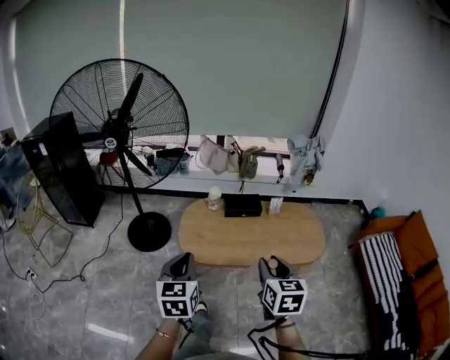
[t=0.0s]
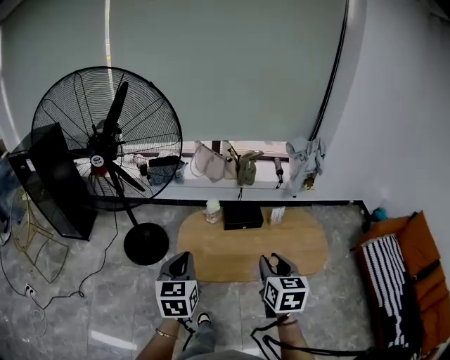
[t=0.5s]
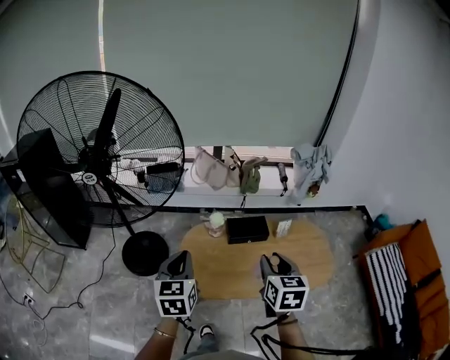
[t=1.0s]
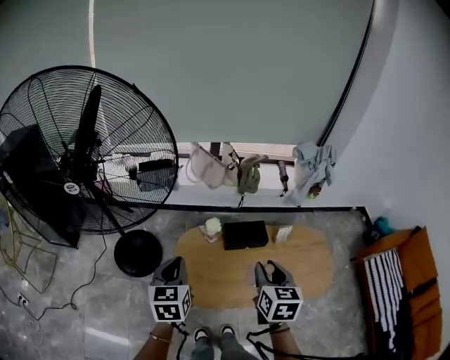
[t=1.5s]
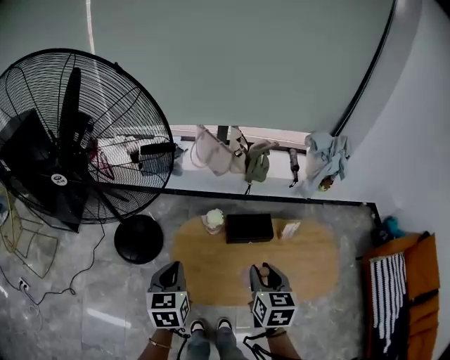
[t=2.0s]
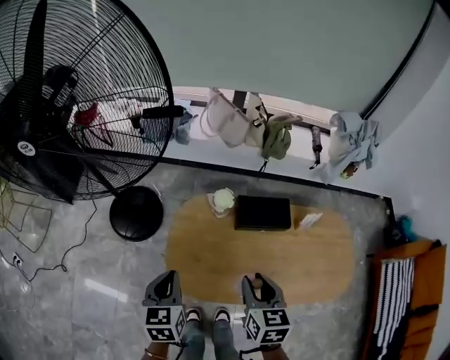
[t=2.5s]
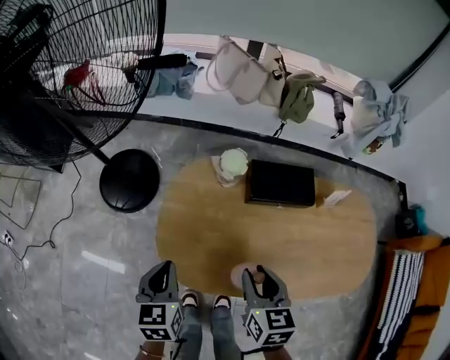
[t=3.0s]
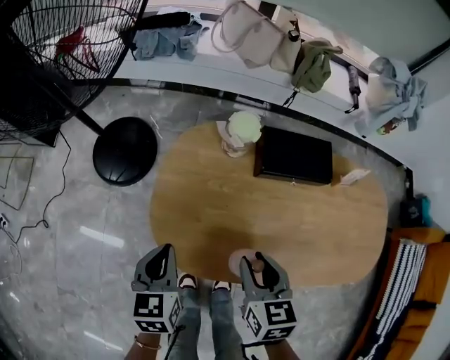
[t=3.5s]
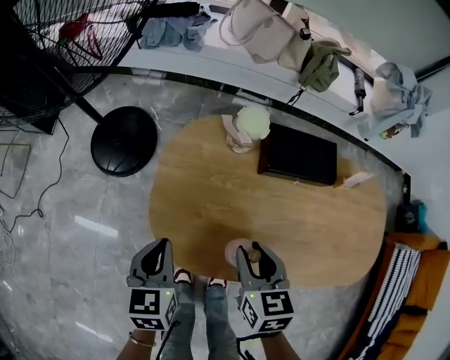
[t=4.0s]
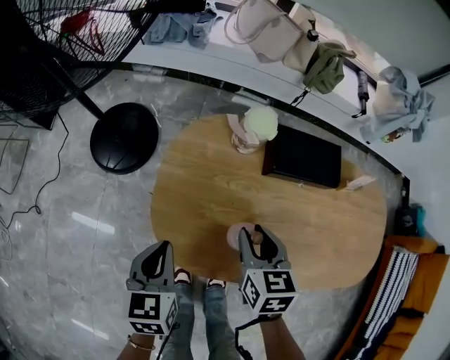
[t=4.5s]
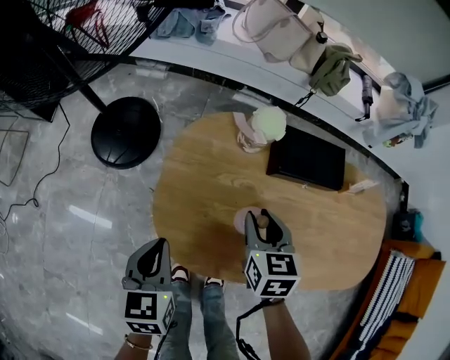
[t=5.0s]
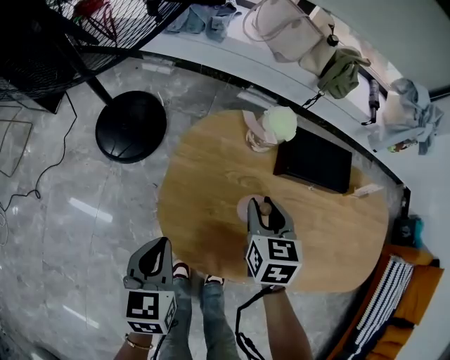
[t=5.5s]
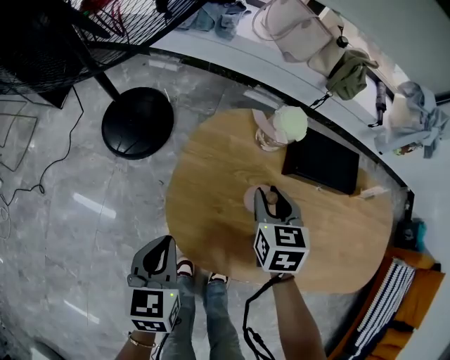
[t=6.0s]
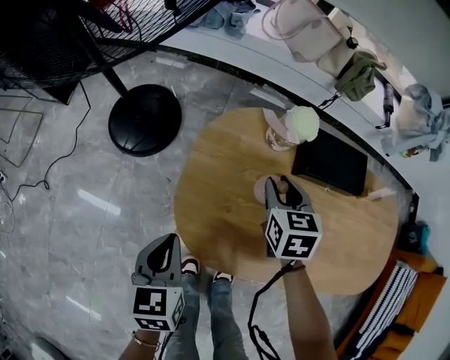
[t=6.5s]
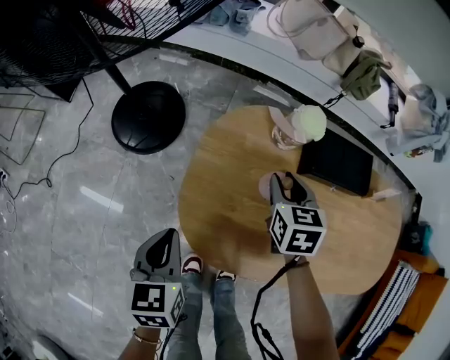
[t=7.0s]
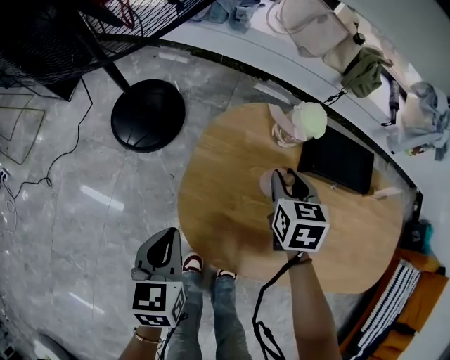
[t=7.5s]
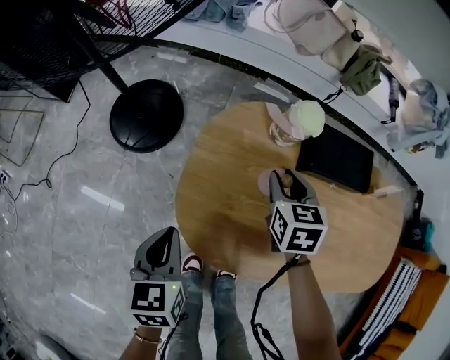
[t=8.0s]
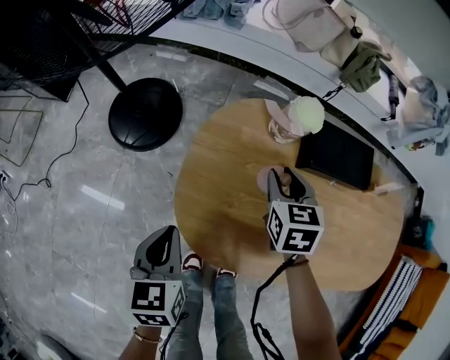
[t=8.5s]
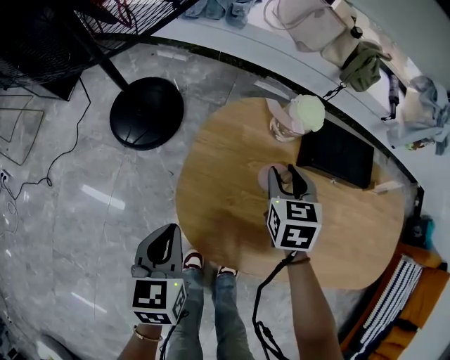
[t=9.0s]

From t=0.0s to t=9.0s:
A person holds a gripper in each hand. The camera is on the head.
From t=0.0s to t=2.0s: The two grippers go about 30 cm forward.
From t=2.0s to t=4.5s: The grippers both shift downward by about 35 cm.
From t=4.5s to t=7.0s: The right gripper travels forward by some 10 cm. The left gripper goes roughly 5 cm to the left.
From t=7.0s to t=9.0s: Neither gripper changes place.

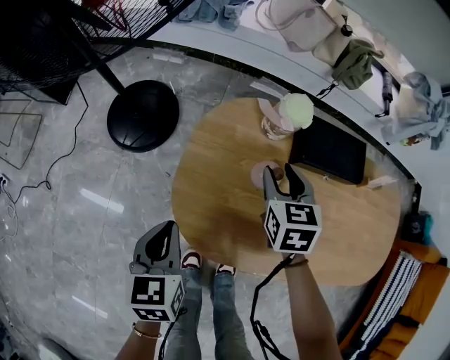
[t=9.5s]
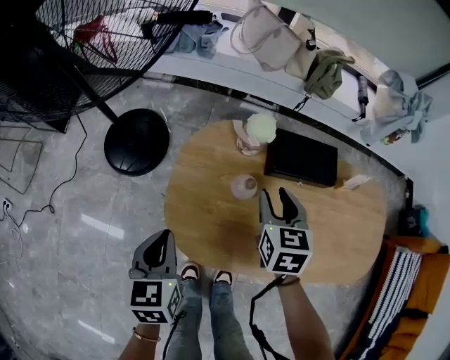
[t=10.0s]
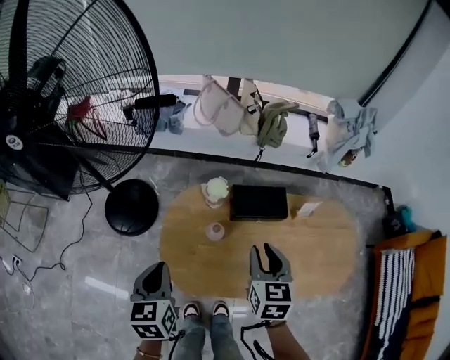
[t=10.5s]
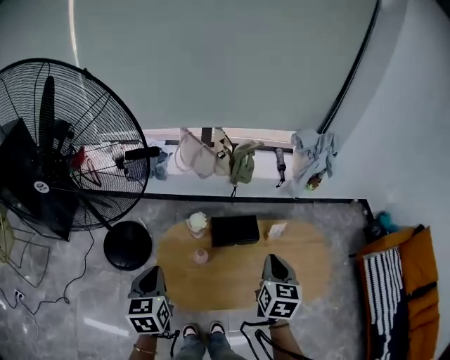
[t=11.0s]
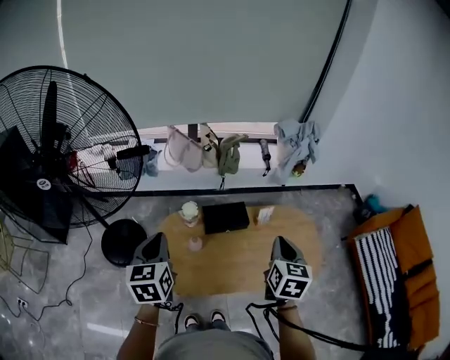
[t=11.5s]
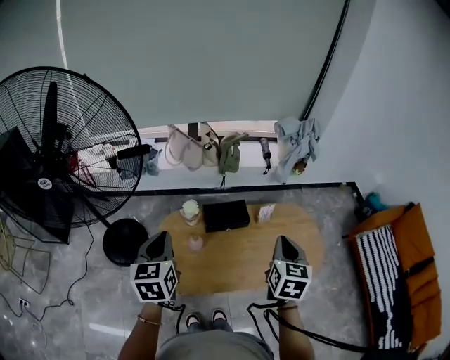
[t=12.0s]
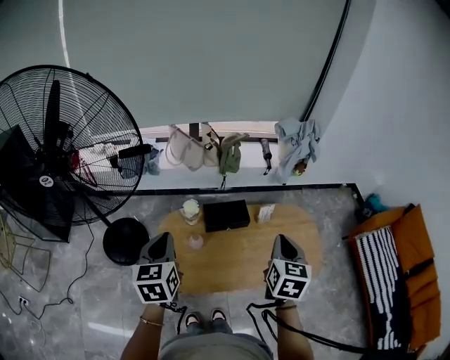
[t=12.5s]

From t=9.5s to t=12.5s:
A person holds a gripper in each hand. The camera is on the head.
From t=9.5s to t=11.0s: The left gripper goes some 30 cm upward. Meanwhile the right gripper is displaced upward, to the right and backward by some 40 cm, rotates about 30 degrees, and closes.
From t=11.0s to t=12.5s: The right gripper heads upward, to the right and backward, covering some 10 cm. Meanwhile the left gripper shifts about 10 cm upward and to the right.

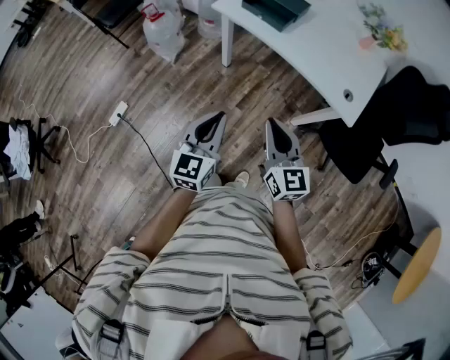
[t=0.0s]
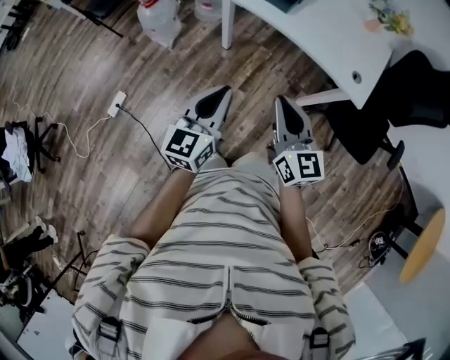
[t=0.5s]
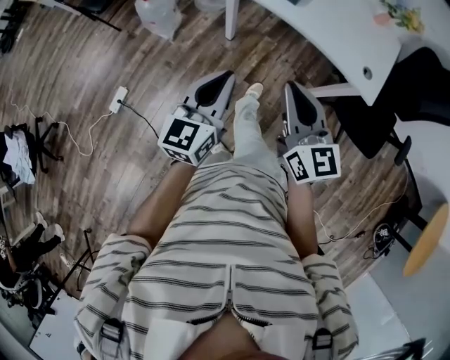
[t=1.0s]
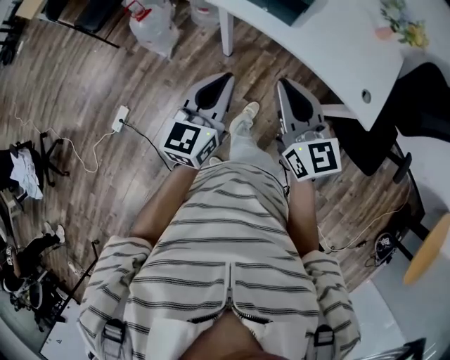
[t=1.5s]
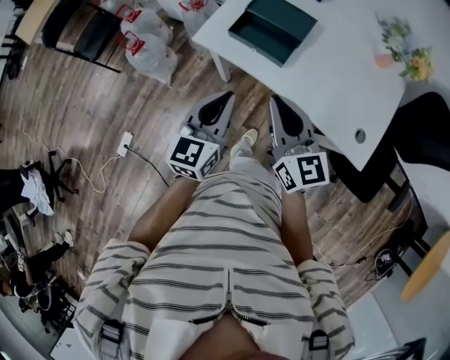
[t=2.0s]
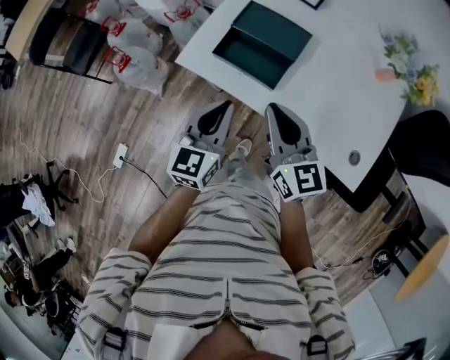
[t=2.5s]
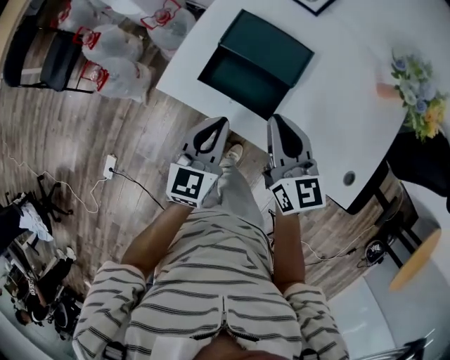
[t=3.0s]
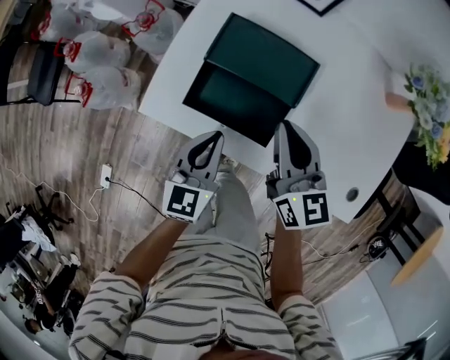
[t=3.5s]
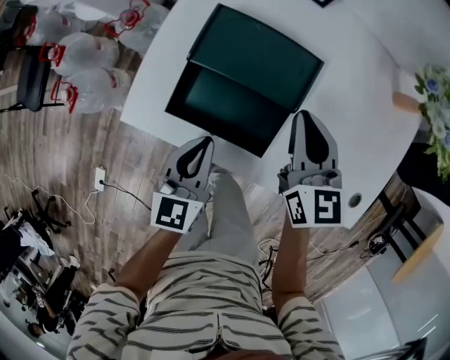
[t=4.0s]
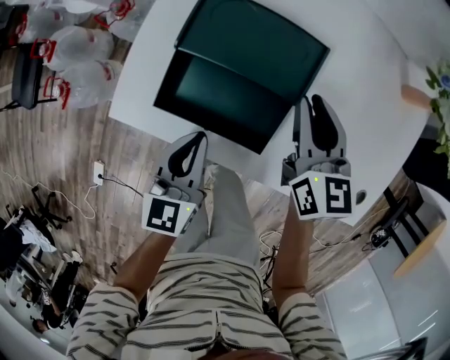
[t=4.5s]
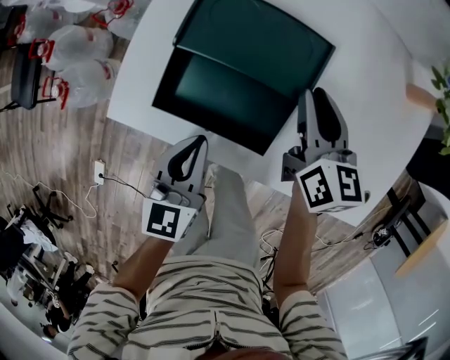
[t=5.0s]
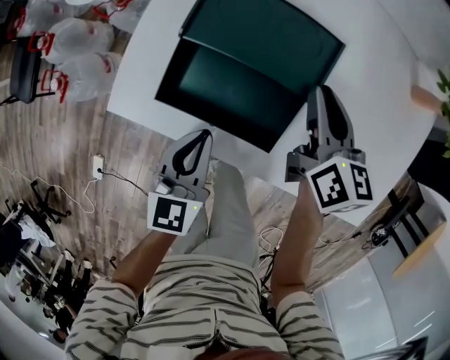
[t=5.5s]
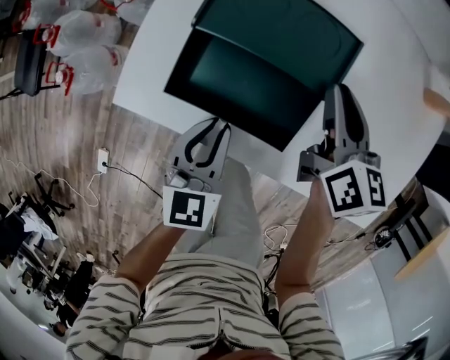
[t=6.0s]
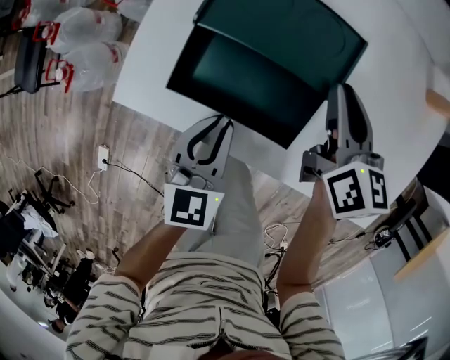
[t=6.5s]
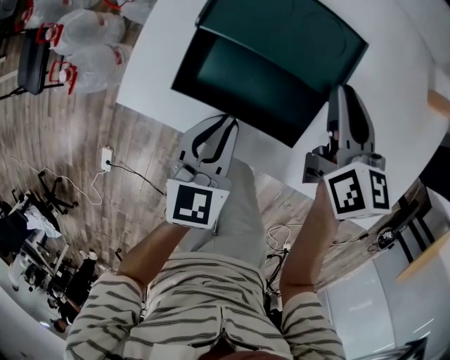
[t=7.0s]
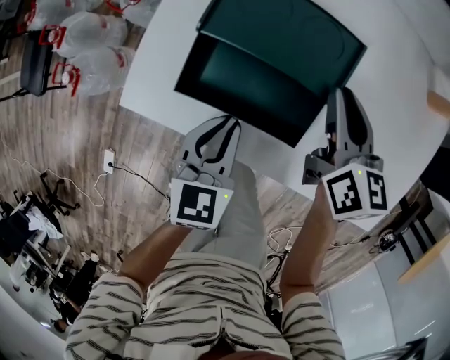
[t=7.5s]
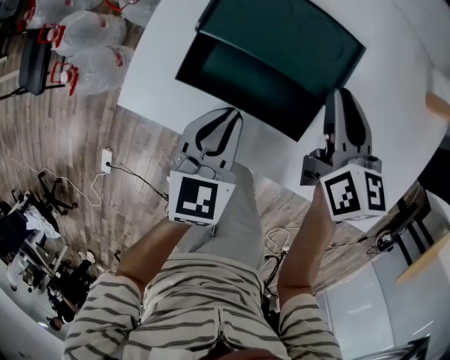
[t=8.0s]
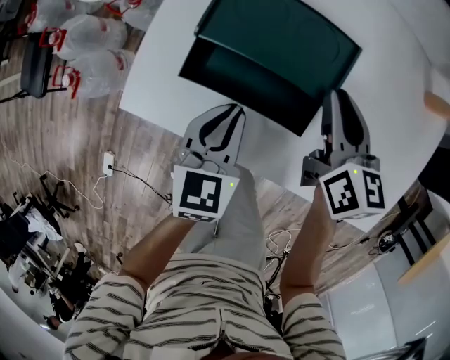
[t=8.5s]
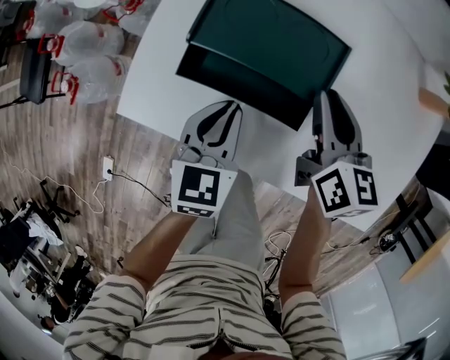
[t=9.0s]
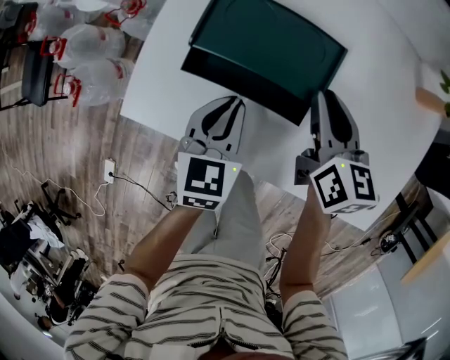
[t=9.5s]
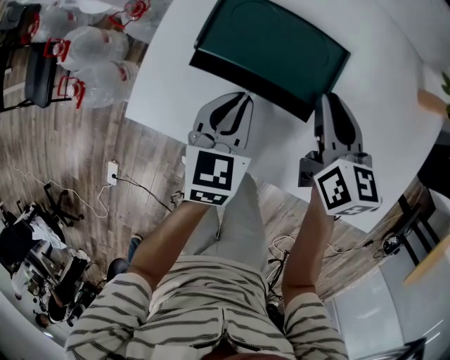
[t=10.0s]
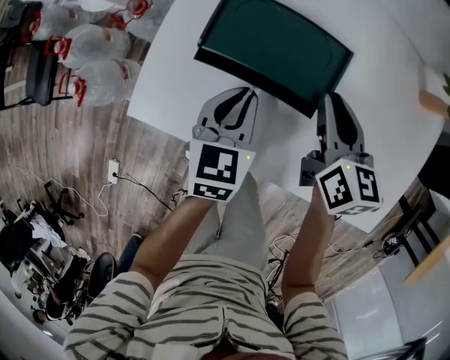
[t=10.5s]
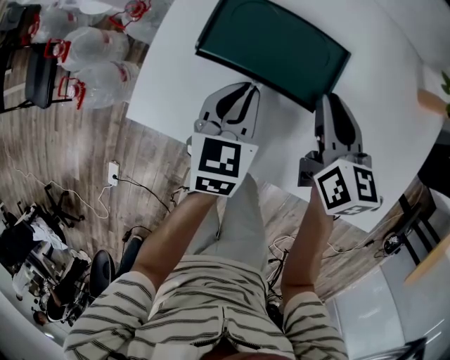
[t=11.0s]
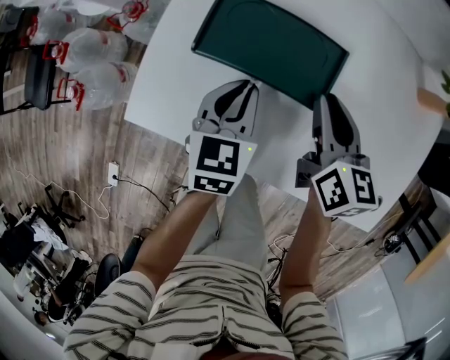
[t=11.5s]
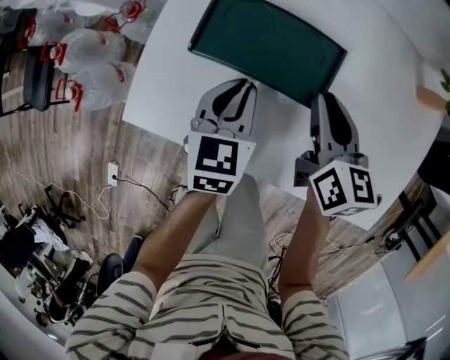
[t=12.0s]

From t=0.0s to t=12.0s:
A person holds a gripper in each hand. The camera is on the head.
From t=0.0s to t=2.0s: Both grippers move forward, roughly 35 cm.
From t=2.0s to t=4.0s: Both grippers move forward and downward, about 30 cm. The right gripper turns by some 30 degrees.
From t=4.0s to t=6.0s: The right gripper travels downward by roughly 5 cm.
From t=6.0s to t=8.0s: There are only small adjustments of the grippers.
From t=8.0s to t=10.0s: The left gripper heads forward, covering roughly 5 cm.
From t=10.0s to t=12.0s: The grippers move only a little.

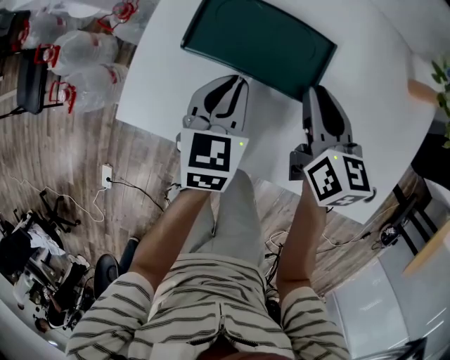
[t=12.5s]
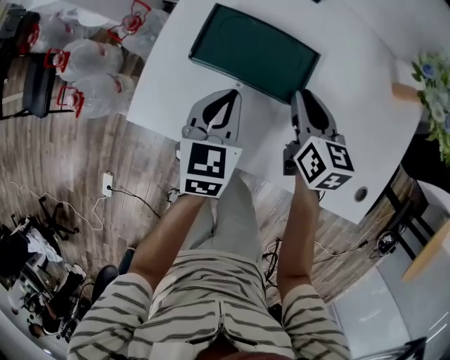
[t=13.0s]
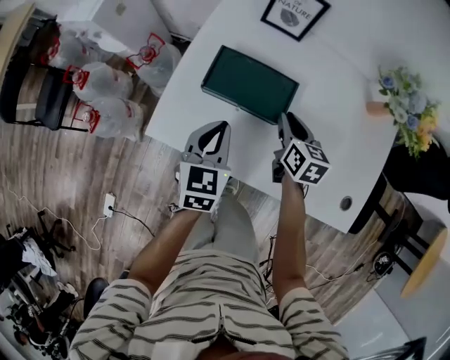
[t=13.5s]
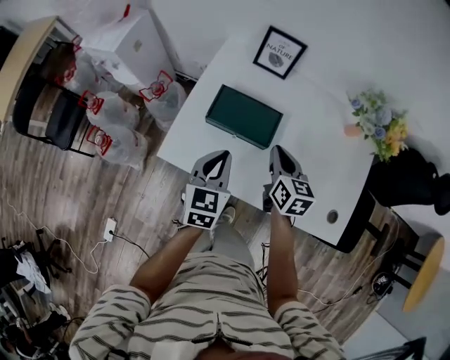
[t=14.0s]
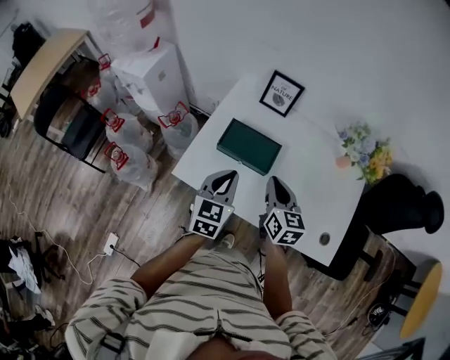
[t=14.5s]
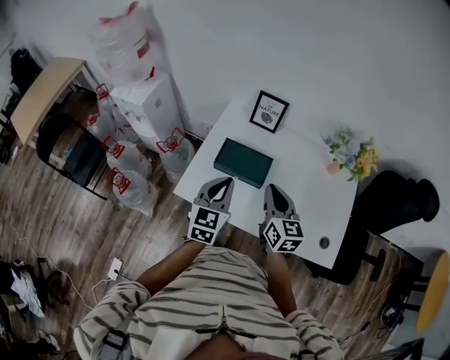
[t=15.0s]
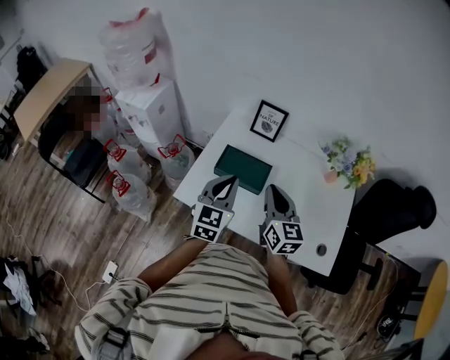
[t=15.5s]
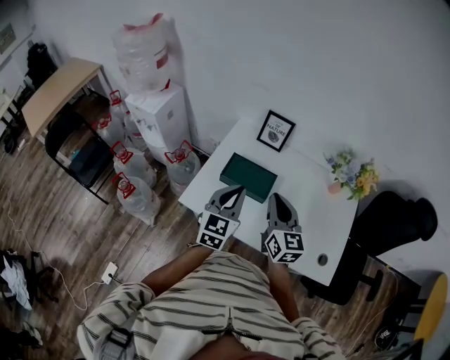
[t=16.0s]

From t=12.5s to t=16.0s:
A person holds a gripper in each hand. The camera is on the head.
From t=12.5s to t=14.5s: Both grippers travel together upward and backward, approximately 25 cm.
From t=14.5s to t=16.0s: Both grippers travel together upward, roughly 10 cm.
